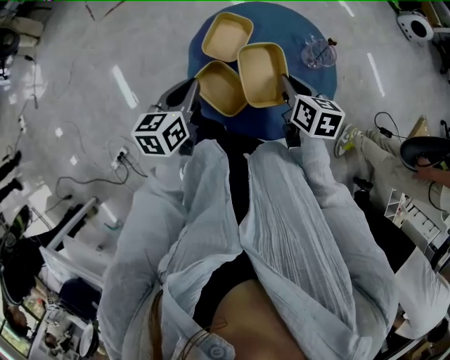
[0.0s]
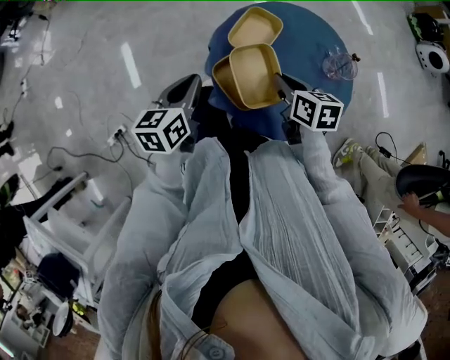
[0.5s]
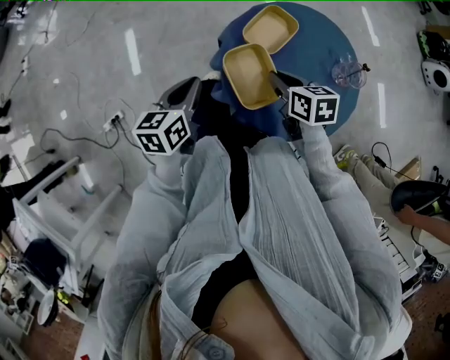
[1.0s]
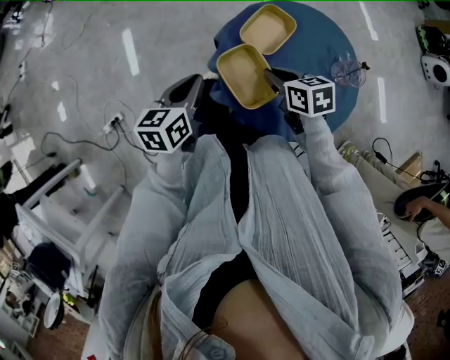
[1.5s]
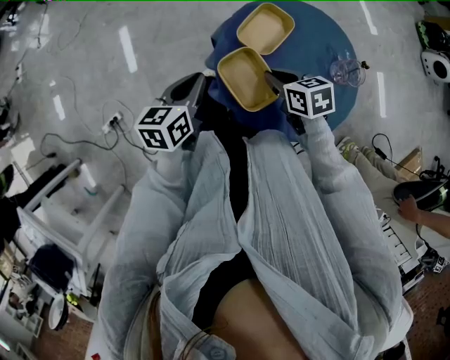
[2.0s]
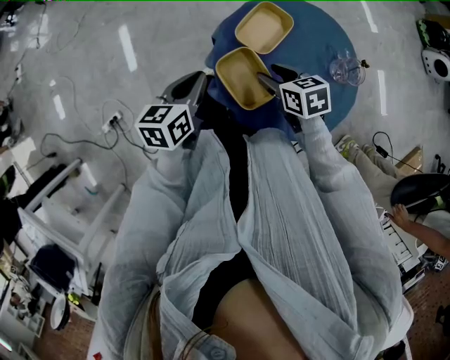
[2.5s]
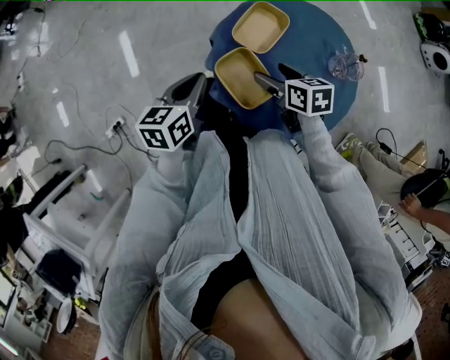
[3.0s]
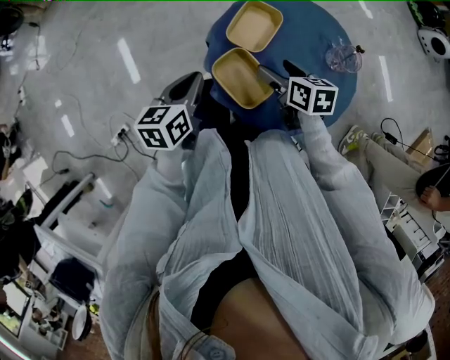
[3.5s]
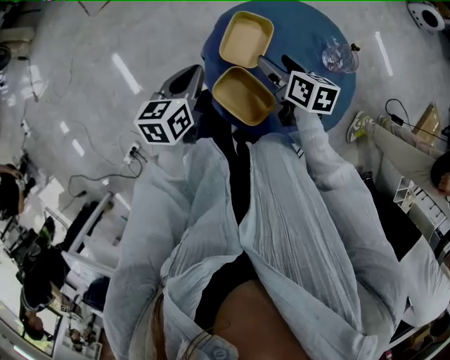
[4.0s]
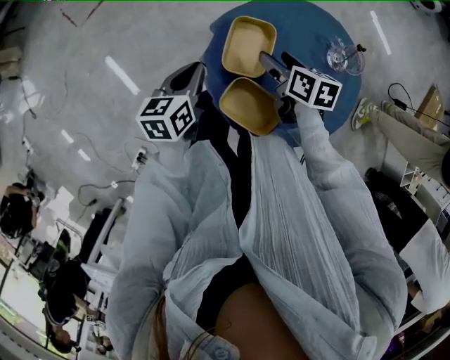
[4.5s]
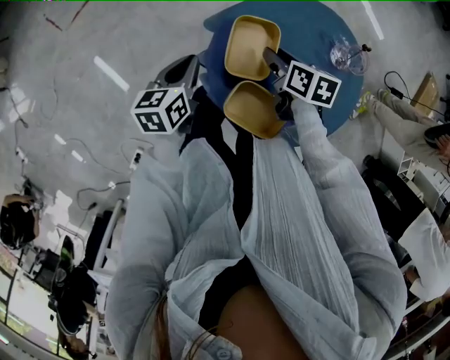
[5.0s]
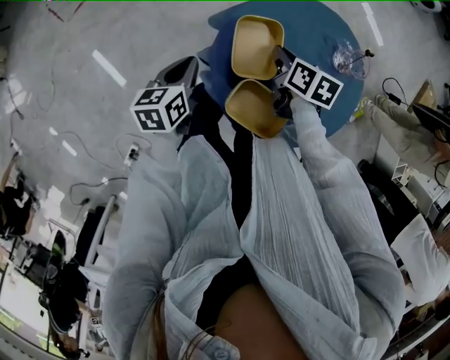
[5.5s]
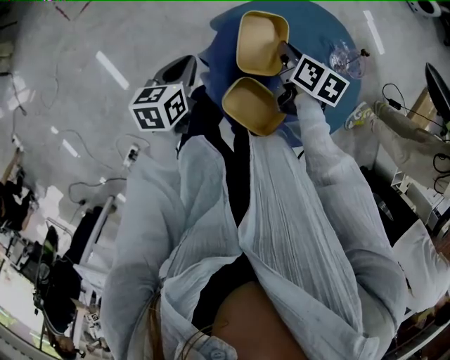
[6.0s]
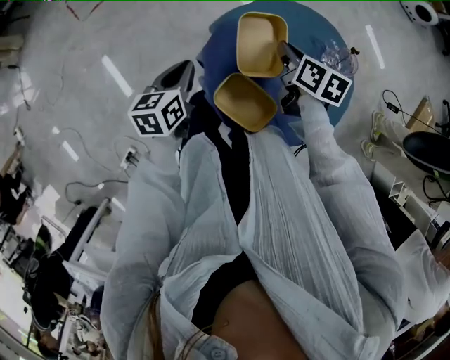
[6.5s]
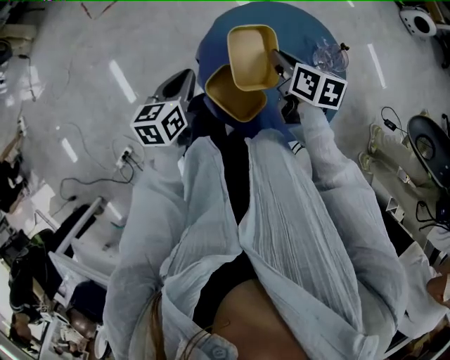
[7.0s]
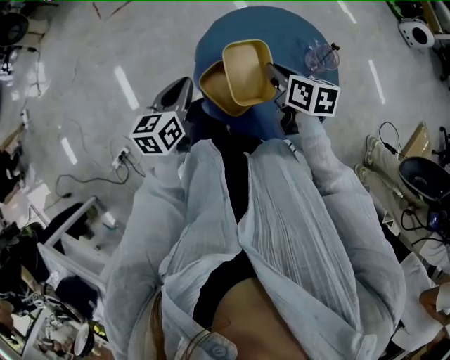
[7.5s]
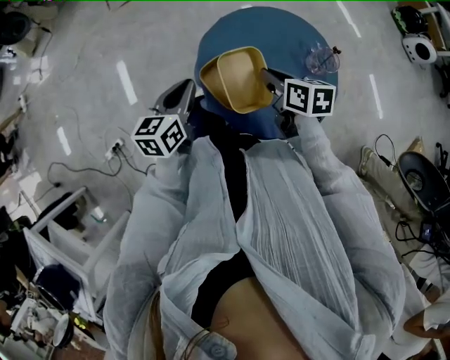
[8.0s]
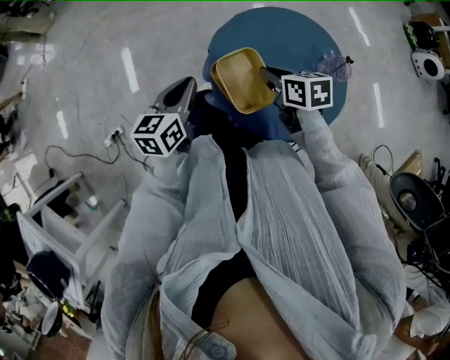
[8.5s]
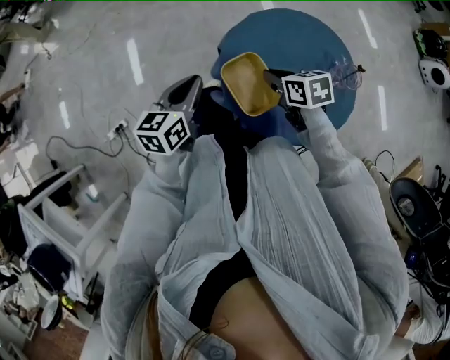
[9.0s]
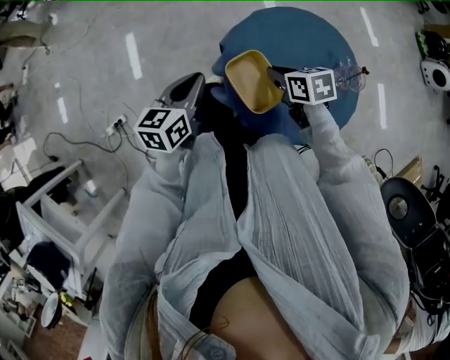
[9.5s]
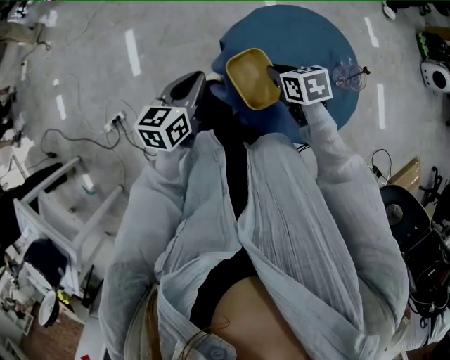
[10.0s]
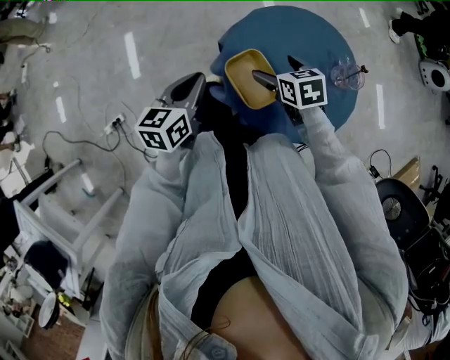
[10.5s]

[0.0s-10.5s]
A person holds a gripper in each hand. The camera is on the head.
0.0s to 2.0s: The right gripper shifts about 10 cm to the left and downward, and changes its angle by about 40 degrees; the left gripper is displaced to the left by some 5 cm.
2.0s to 4.0s: Both grippers travel together forward, about 10 cm. The right gripper swivels about 40 degrees, and opens.
4.0s to 6.5s: The right gripper goes some 5 cm forward, and closes up.
6.5s to 8.5s: The right gripper shifts by roughly 15 cm, and rotates some 40 degrees, while the left gripper moves about 15 cm.
8.5s to 10.5s: The right gripper opens its fingers.

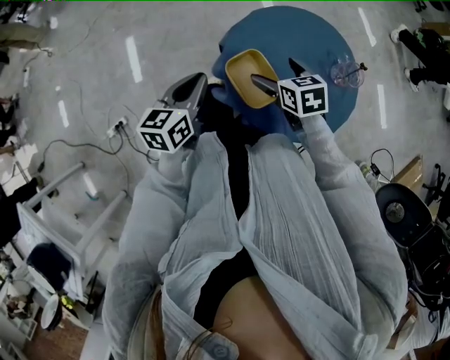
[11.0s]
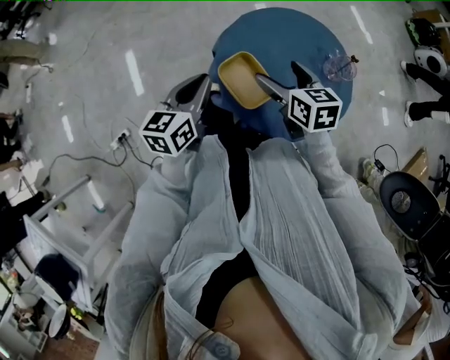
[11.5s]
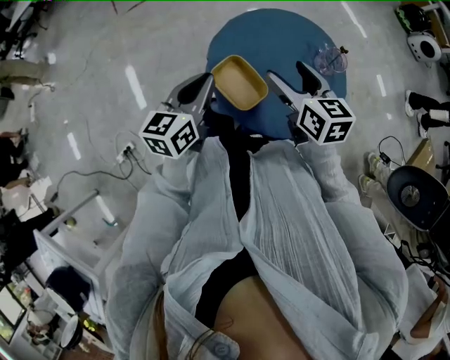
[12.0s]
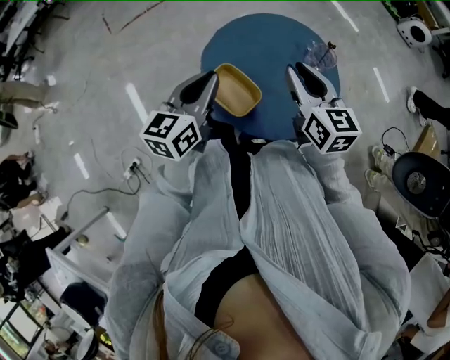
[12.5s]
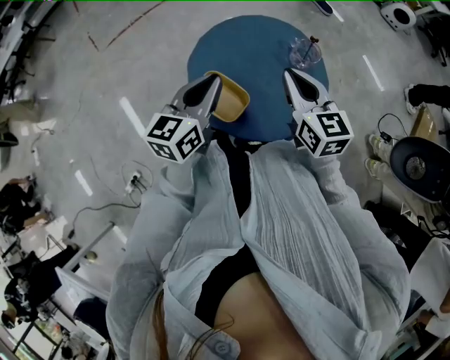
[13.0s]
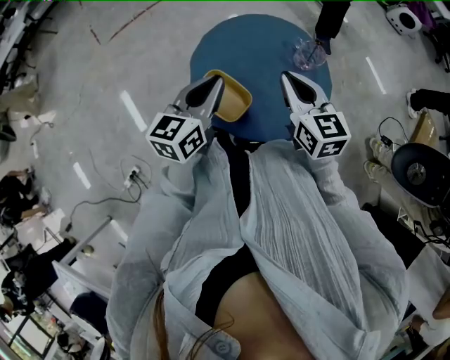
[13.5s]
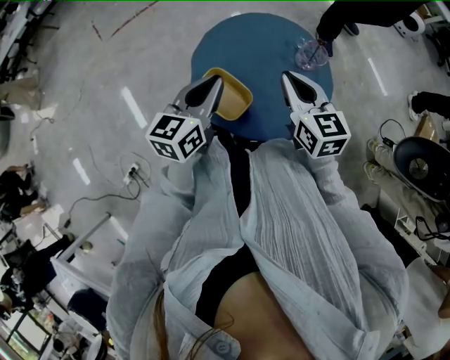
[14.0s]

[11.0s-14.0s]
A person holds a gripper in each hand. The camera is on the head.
11.0s to 12.5s: The right gripper travels upward and to the right by roughly 20 cm, tips its fingers upward by approximately 30 degrees, and closes up; the left gripper goes roughly 15 cm to the right and upward, and rotates about 20 degrees.
12.5s to 14.0s: There are only small adjustments of the grippers.

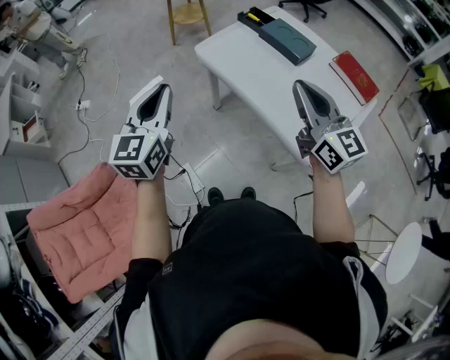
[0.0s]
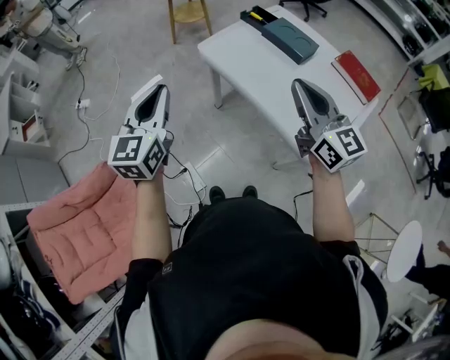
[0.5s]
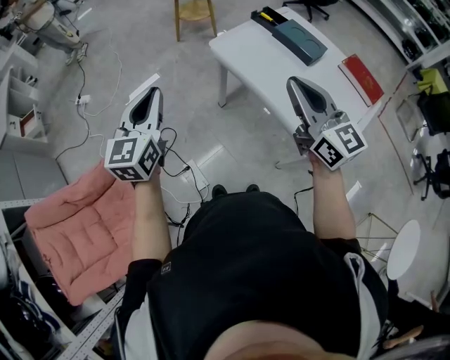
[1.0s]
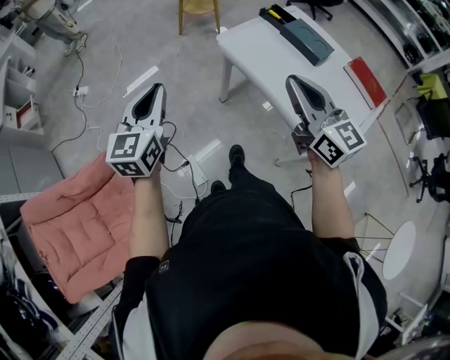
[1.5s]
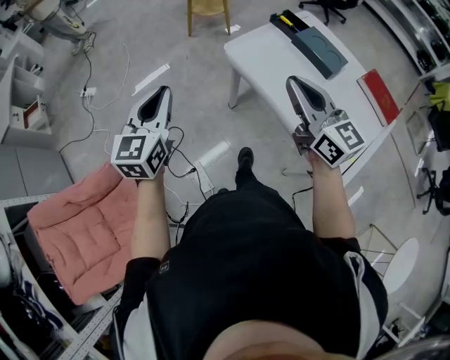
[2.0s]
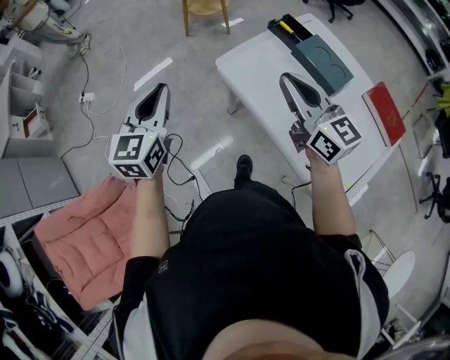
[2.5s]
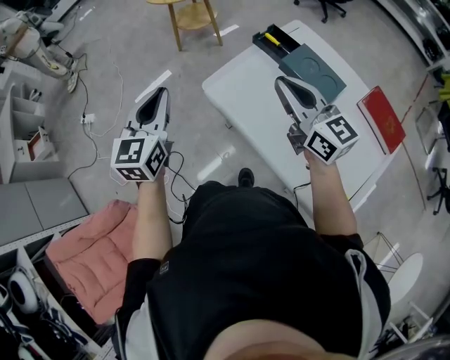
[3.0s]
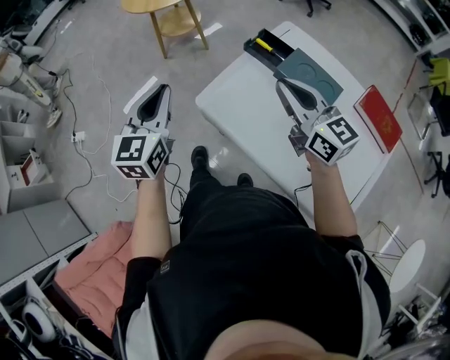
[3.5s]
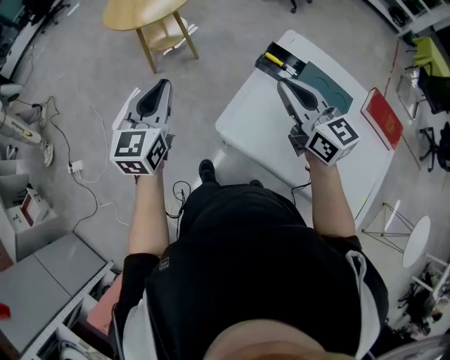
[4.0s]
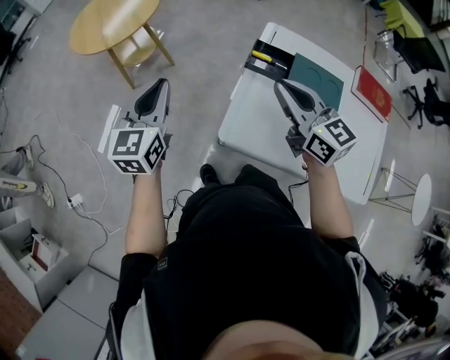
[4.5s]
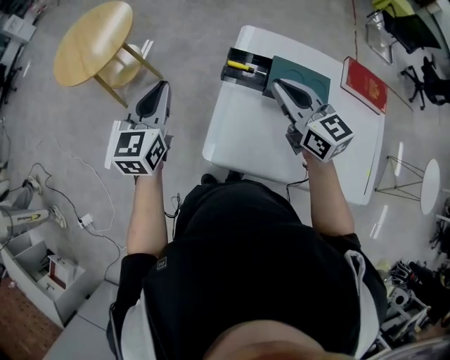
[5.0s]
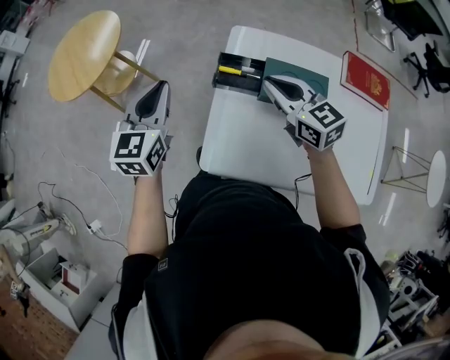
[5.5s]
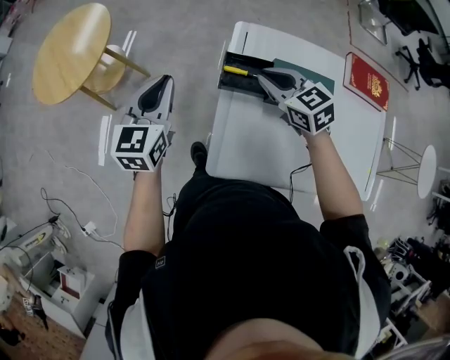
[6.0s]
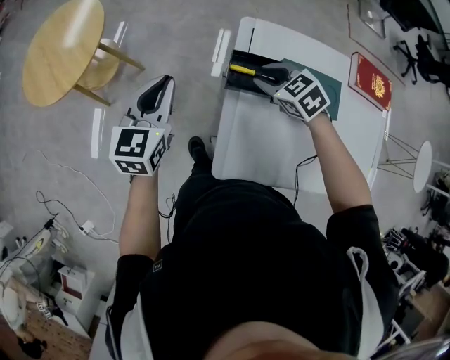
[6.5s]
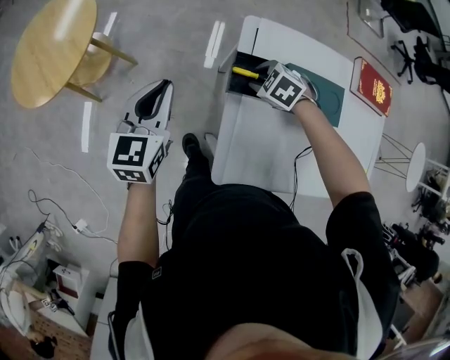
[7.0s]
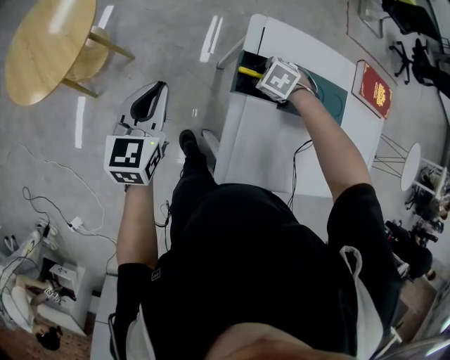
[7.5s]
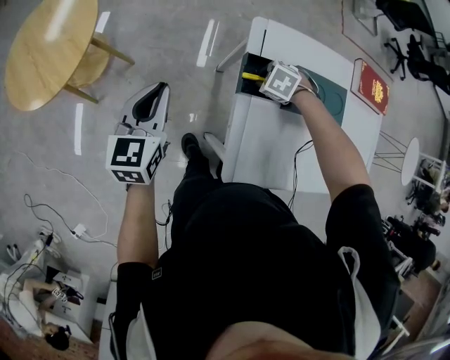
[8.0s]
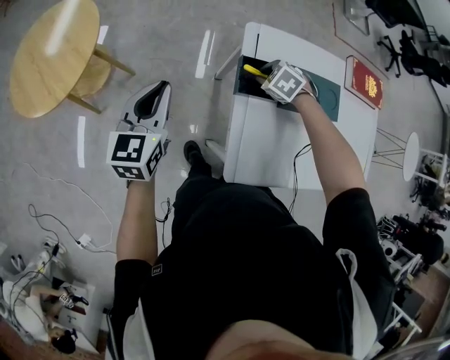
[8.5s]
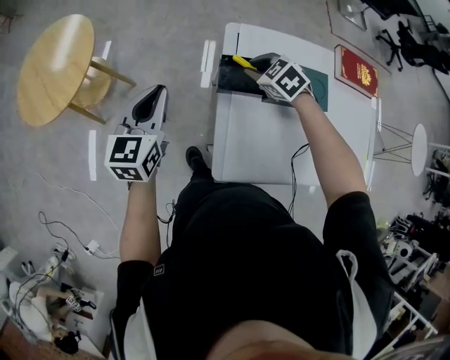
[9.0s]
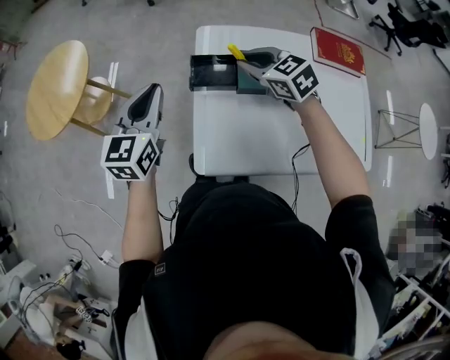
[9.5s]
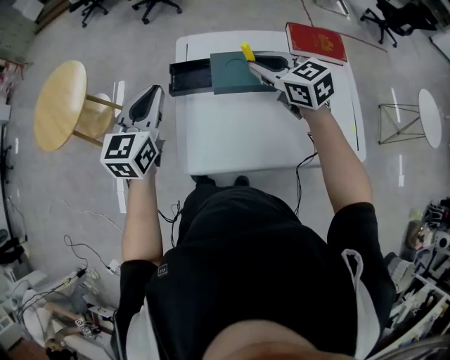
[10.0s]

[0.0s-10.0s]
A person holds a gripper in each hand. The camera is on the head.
0.0s to 2.0s: Both grippers move to the left and forward, approximately 15 cm.
2.0s to 4.0s: The two grippers go roughly 40 cm forward.
4.0s to 6.0s: The right gripper heads forward, downward and to the right, covering about 25 cm, and turns by about 30 degrees. The left gripper shifts about 25 cm forward and to the right, and rotates about 30 degrees.
6.0s to 8.0s: The right gripper moves downward, approximately 20 cm, and tips its fingers downward by approximately 50 degrees; the left gripper moves some 15 cm.
8.0s to 10.0s: The right gripper goes roughly 30 cm upward, and points its fingers about 60 degrees further upward. Meanwhile the left gripper changes place by about 30 cm.

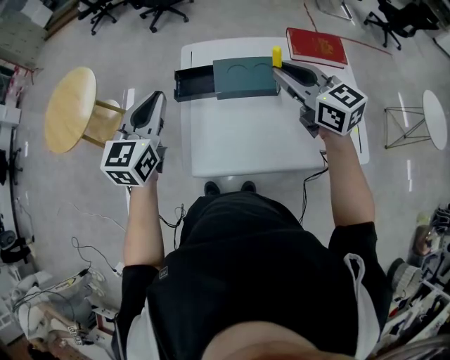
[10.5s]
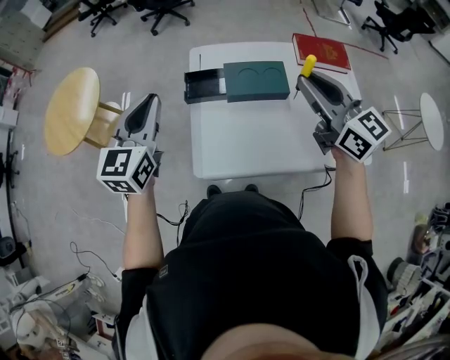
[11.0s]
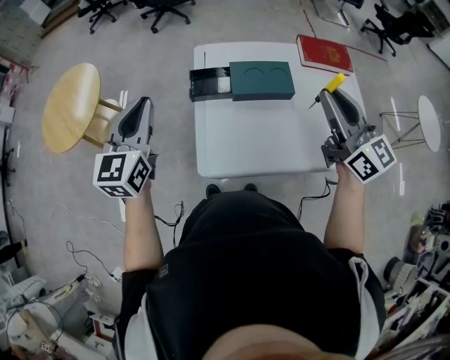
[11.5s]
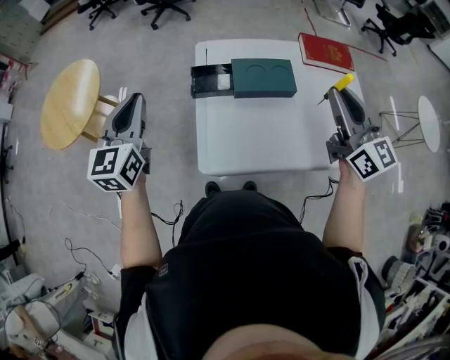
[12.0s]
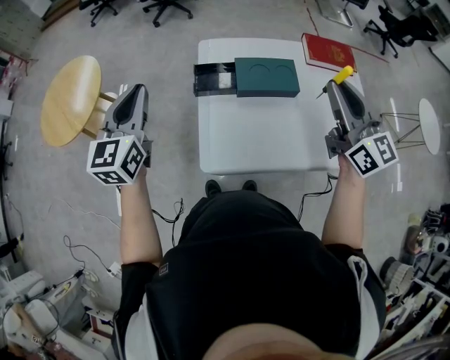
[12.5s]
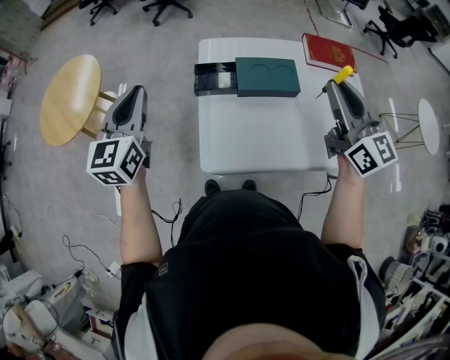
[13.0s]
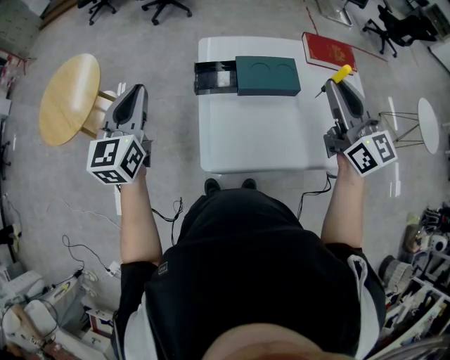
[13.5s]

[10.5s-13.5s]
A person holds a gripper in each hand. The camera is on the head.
10.5s to 12.0s: The right gripper shifts some 10 cm backward and upward, and rotates about 20 degrees. The left gripper is displaced to the left by about 15 cm.
12.0s to 13.5s: There are only small adjustments of the grippers.
